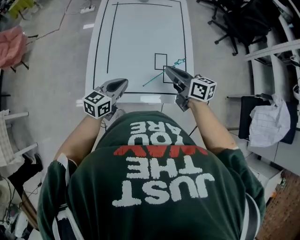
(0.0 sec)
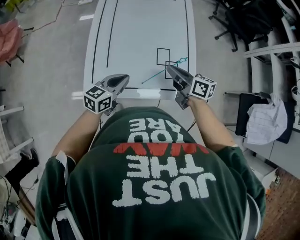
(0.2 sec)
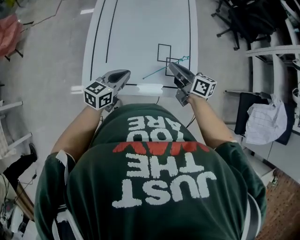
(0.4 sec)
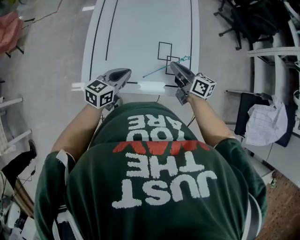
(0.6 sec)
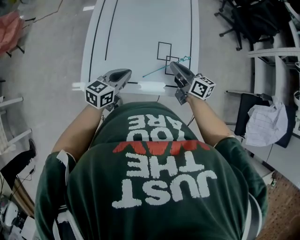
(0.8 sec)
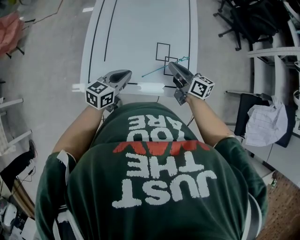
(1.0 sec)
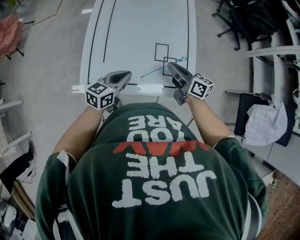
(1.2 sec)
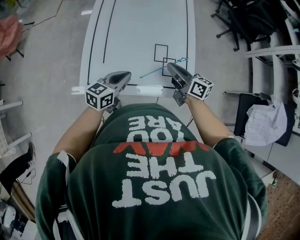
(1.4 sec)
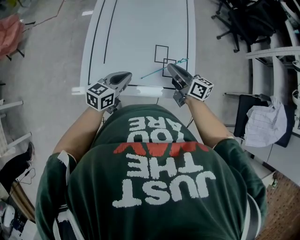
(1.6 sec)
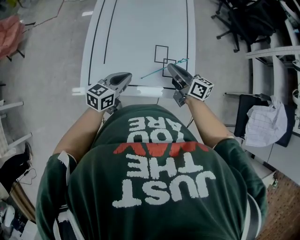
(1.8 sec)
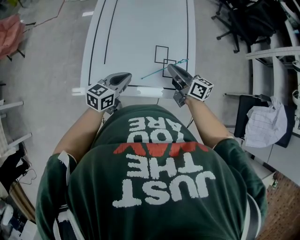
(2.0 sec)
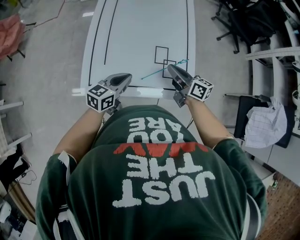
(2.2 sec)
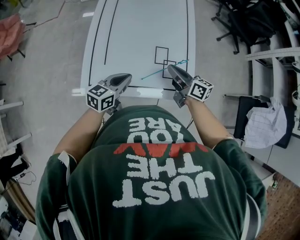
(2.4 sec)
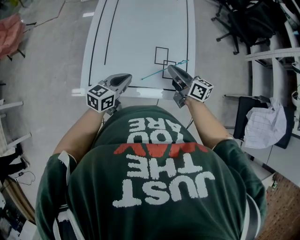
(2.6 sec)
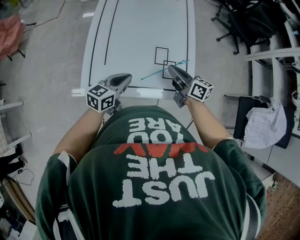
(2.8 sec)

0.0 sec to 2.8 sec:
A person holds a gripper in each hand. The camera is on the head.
0.0 sec to 1.4 sec: The right gripper goes approximately 5 cm downward.
1.4 sec to 2.8 sec: Neither gripper changes place.

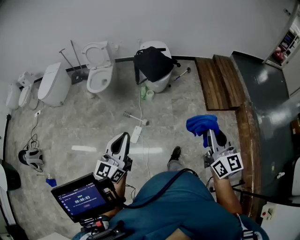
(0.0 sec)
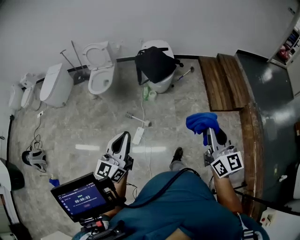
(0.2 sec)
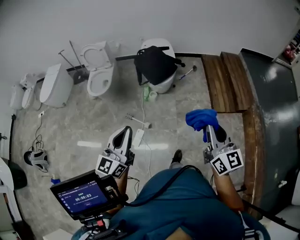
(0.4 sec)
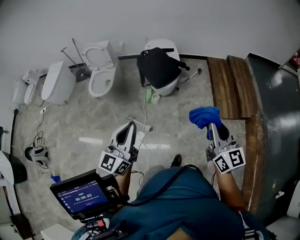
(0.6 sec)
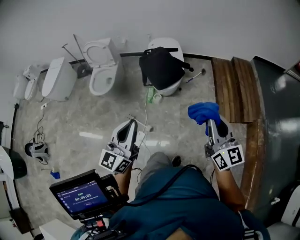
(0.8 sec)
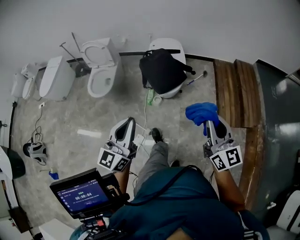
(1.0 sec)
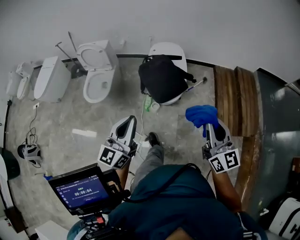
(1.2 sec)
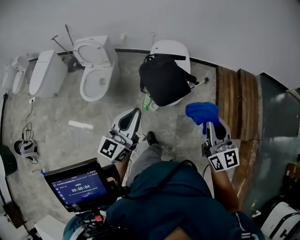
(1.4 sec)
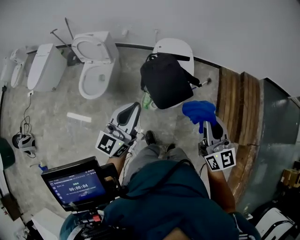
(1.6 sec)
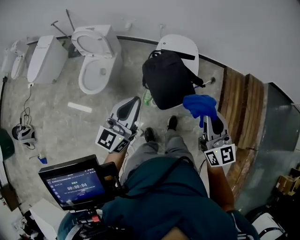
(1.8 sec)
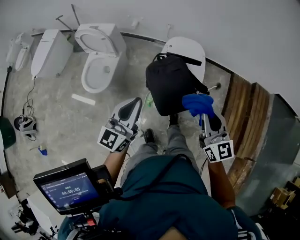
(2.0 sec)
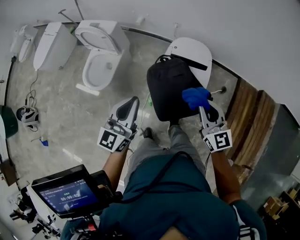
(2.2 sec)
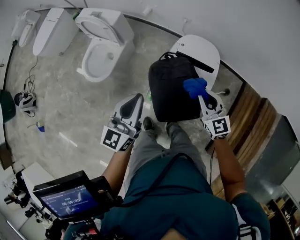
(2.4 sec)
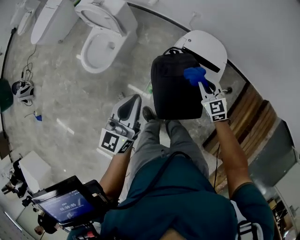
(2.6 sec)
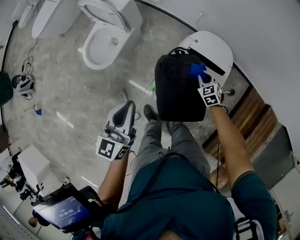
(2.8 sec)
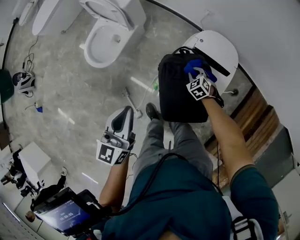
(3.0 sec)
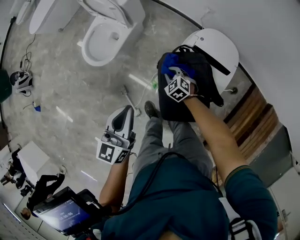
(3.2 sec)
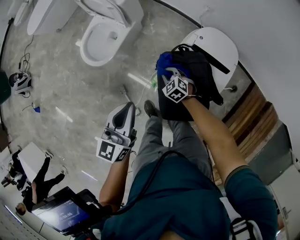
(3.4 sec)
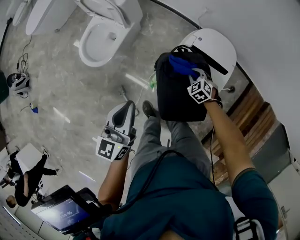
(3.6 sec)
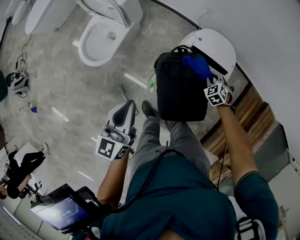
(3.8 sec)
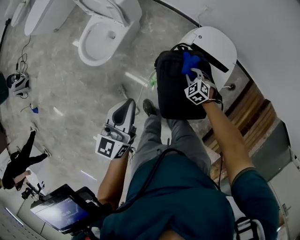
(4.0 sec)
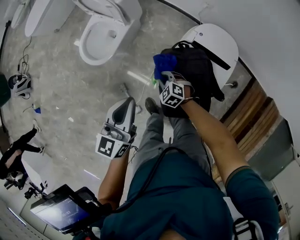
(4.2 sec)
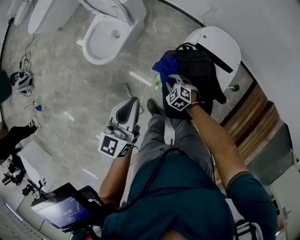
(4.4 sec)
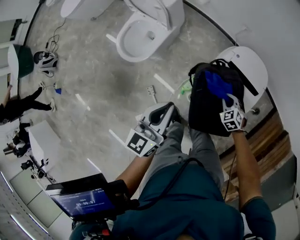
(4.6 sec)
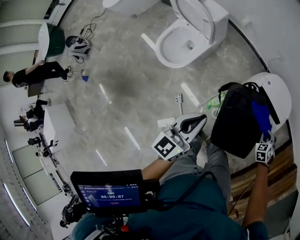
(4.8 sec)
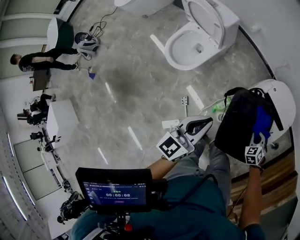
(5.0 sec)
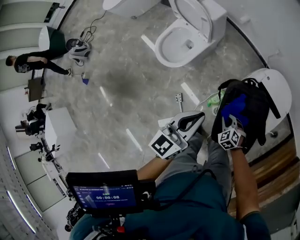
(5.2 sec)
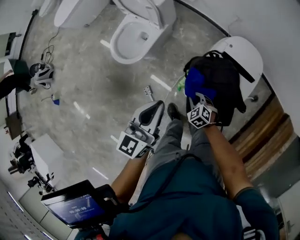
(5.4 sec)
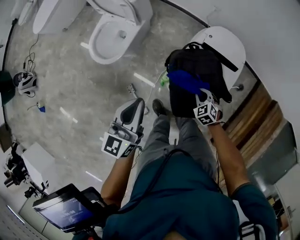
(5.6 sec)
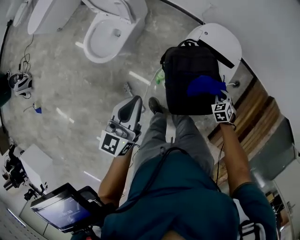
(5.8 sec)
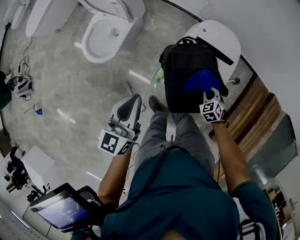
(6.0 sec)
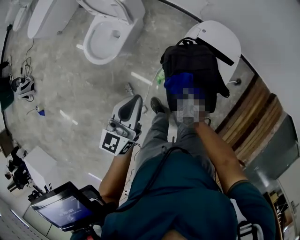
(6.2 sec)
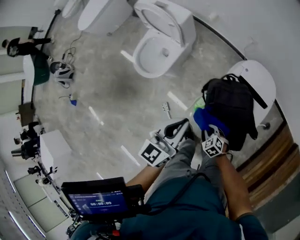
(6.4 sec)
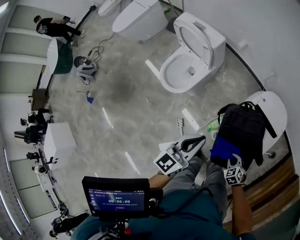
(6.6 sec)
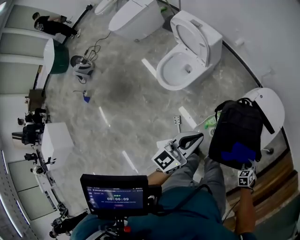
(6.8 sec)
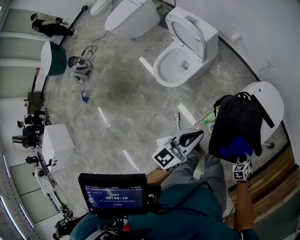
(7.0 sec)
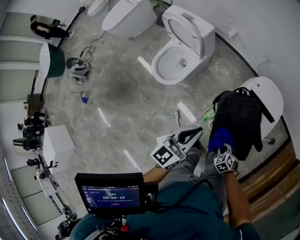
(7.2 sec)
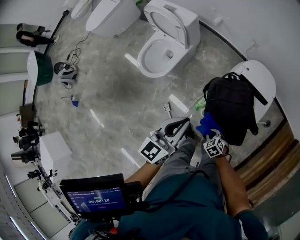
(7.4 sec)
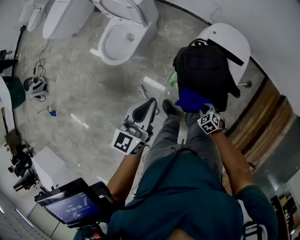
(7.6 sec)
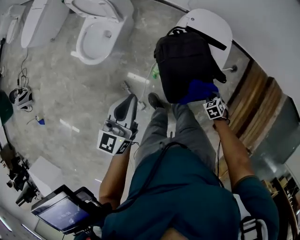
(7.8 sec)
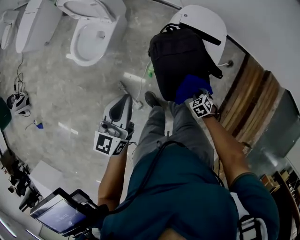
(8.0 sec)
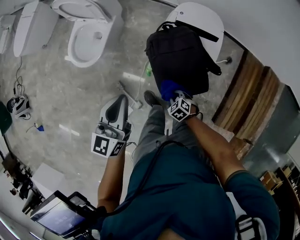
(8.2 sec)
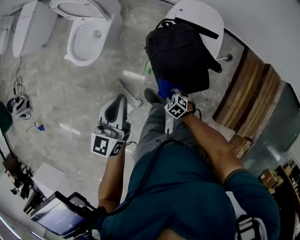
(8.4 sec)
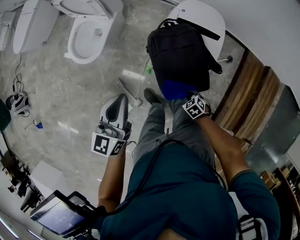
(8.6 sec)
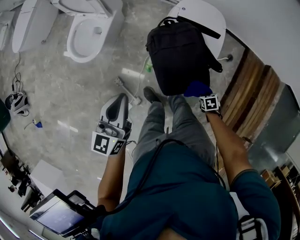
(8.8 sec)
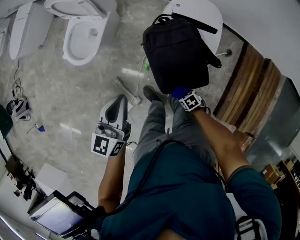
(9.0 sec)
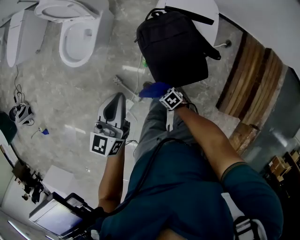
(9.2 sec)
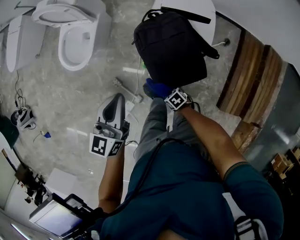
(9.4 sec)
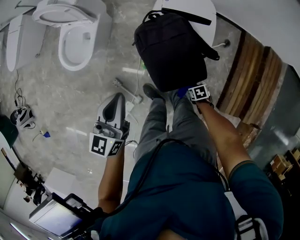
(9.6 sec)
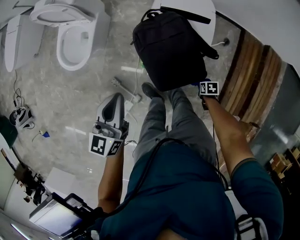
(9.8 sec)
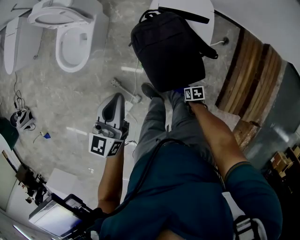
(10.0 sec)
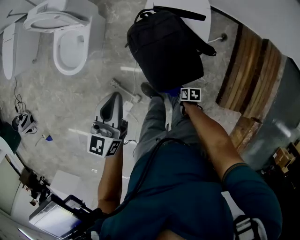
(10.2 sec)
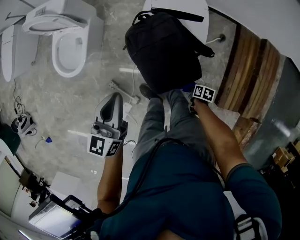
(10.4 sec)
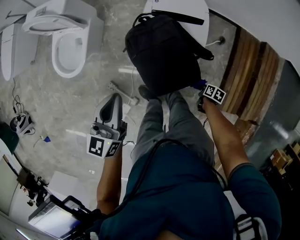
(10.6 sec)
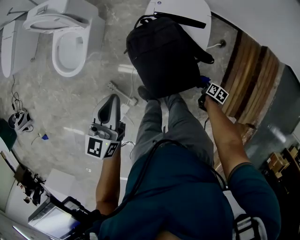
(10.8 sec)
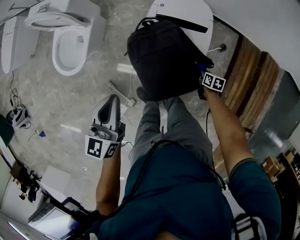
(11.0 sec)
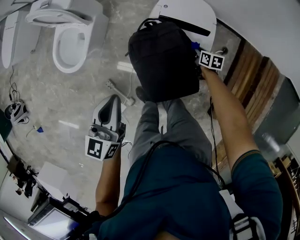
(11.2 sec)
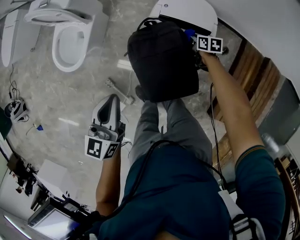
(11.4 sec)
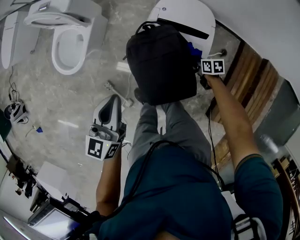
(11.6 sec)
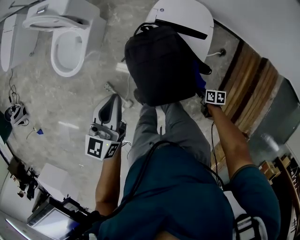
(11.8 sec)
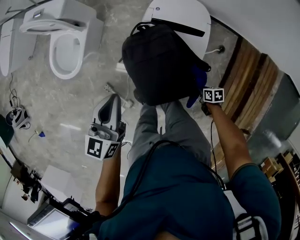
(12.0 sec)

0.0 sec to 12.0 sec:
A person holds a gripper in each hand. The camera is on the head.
0.0 sec to 1.6 sec: Both grippers are carried forward, some 60 cm.
1.6 sec to 3.0 sec: The left gripper shifts by some 25 cm, and swivels roughly 40 degrees; the right gripper moves downward, some 50 cm, and tilts its fingers about 60 degrees downward.
3.0 sec to 4.4 sec: The right gripper moves left and right over approximately 25 cm, changing direction 2 times.
4.4 sec to 6.0 sec: The right gripper changes place by some 20 cm, and swivels some 30 degrees.
6.0 sec to 7.6 sec: The right gripper ends up some 15 cm from where it was.
7.6 sec to 9.0 sec: The right gripper changes place by about 10 cm, and rotates about 30 degrees.
9.0 sec to 10.4 sec: The right gripper shifts by some 15 cm, and rolls clockwise, seen from behind, by about 60 degrees; the left gripper moves roughly 5 cm.
10.4 sec to 12.0 sec: The left gripper ends up approximately 5 cm from where it was. The right gripper changes its angle by some 30 degrees.

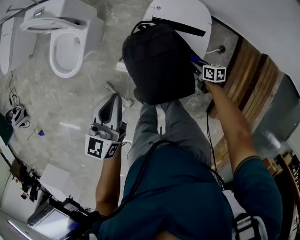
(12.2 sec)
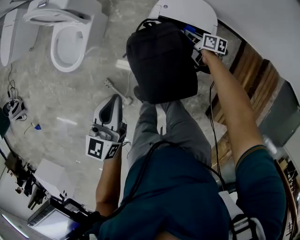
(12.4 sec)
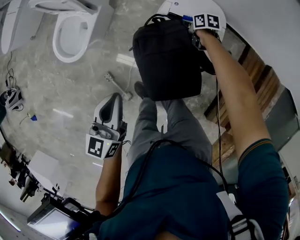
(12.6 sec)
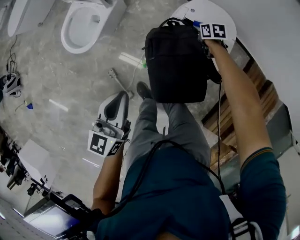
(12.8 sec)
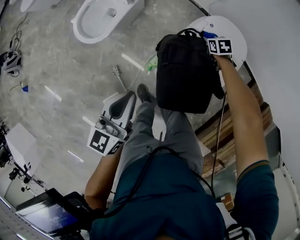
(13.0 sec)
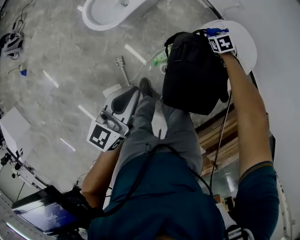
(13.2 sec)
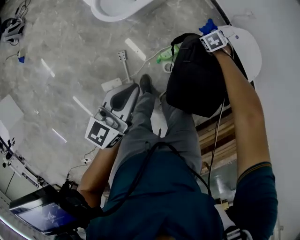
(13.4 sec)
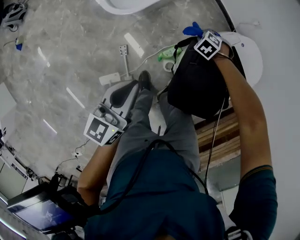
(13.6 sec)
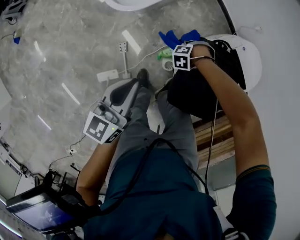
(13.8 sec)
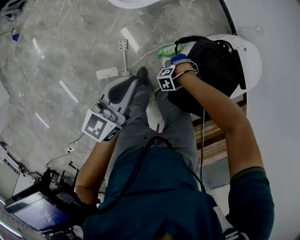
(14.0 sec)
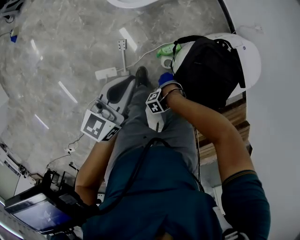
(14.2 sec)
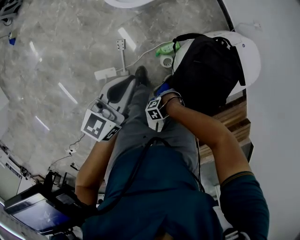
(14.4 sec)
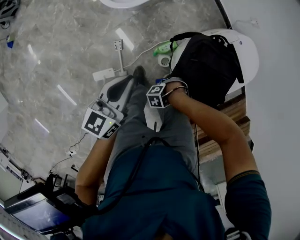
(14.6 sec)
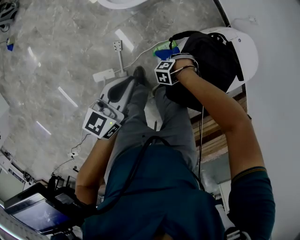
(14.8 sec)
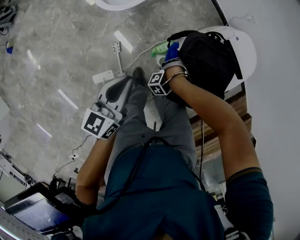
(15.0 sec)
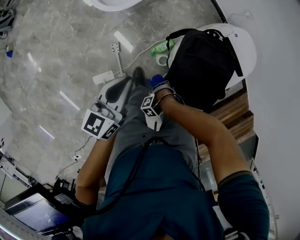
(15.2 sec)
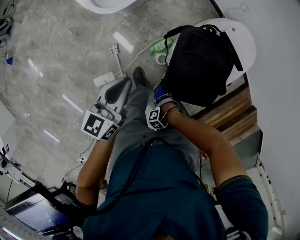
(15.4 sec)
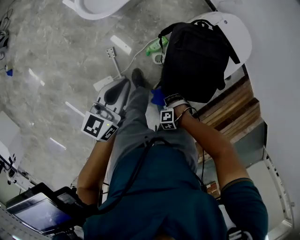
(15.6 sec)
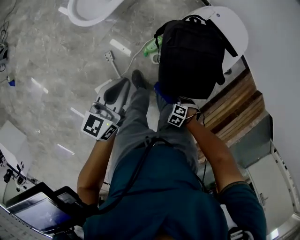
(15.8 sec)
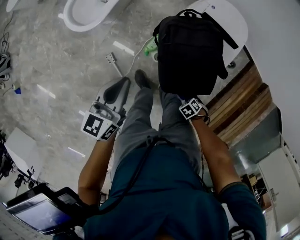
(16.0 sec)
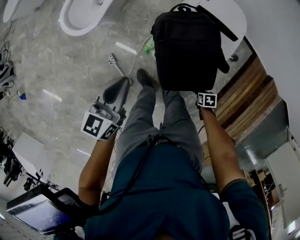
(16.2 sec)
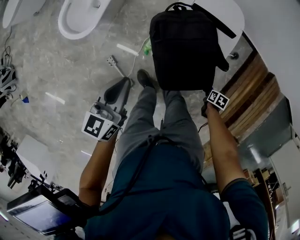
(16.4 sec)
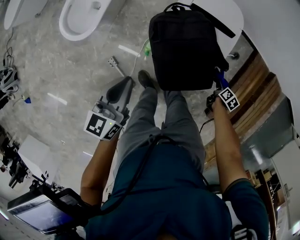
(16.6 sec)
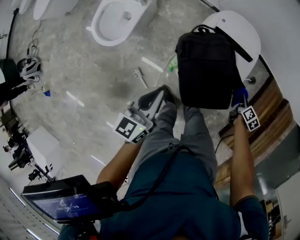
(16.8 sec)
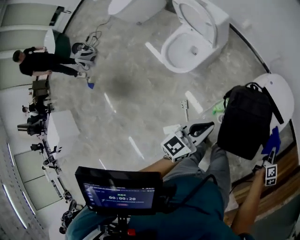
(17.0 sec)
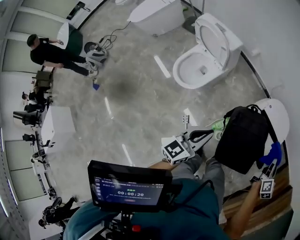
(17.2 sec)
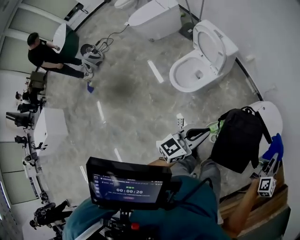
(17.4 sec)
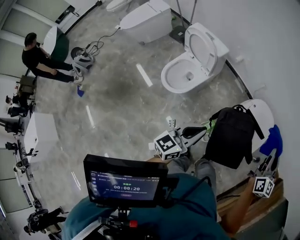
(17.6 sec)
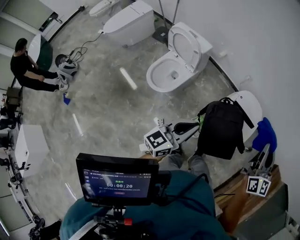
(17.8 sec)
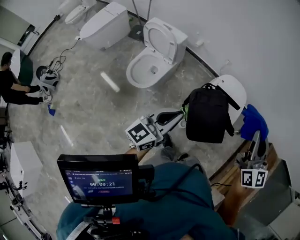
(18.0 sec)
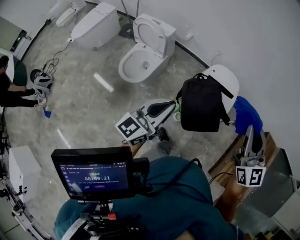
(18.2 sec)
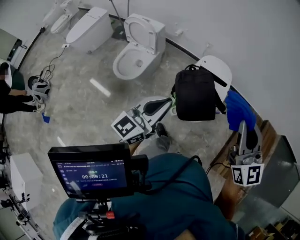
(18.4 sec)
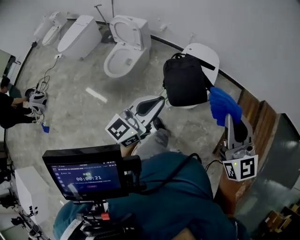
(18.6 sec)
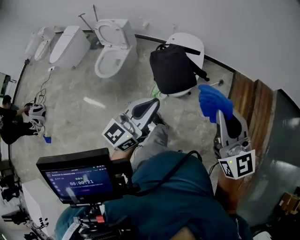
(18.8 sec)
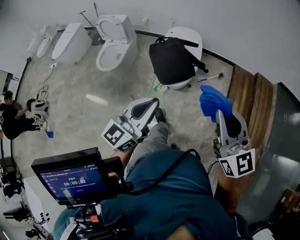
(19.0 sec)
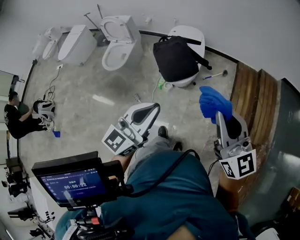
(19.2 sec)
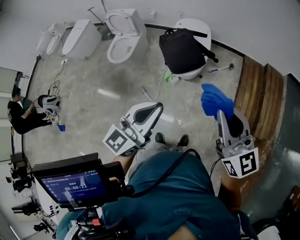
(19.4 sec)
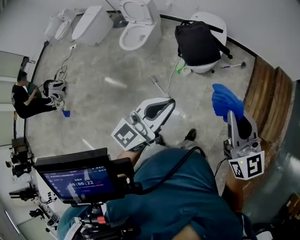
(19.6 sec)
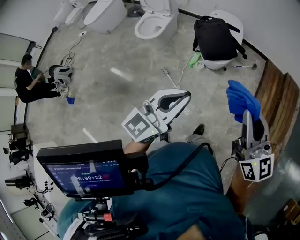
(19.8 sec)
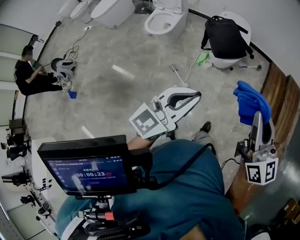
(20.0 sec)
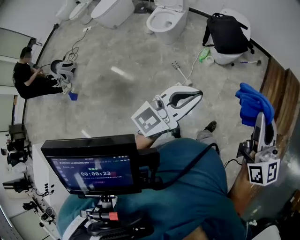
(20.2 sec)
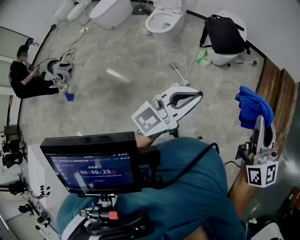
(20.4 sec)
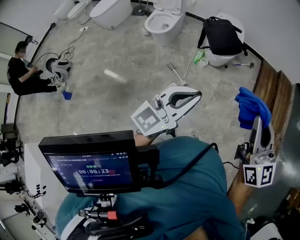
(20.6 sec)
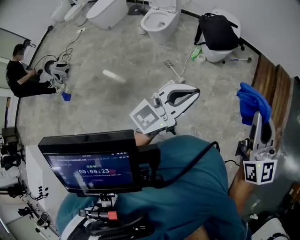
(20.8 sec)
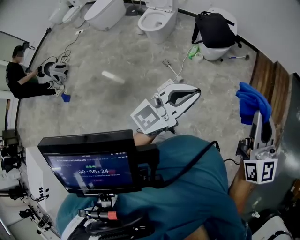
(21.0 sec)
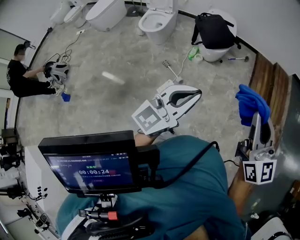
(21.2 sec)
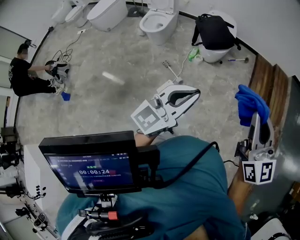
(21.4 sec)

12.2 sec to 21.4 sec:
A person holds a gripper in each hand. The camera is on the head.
12.2 sec to 13.8 sec: The left gripper moves roughly 25 cm, and changes its angle by roughly 30 degrees. Meanwhile the right gripper shifts by roughly 35 cm, and rolls counterclockwise, seen from behind, by approximately 120 degrees.
13.8 sec to 15.2 sec: The right gripper shifts by some 30 cm, and swivels some 30 degrees.
15.2 sec to 16.8 sec: The right gripper ends up some 40 cm from where it was, and rolls counterclockwise, seen from behind, by roughly 150 degrees. The left gripper ends up some 15 cm from where it was, and changes its angle by about 20 degrees.
16.8 sec to 18.4 sec: The right gripper shifts some 60 cm upward, and tips its fingers upward by approximately 50 degrees. Meanwhile the left gripper heads upward and backward, covering approximately 30 cm, and changes its angle by about 30 degrees.
18.4 sec to 19.8 sec: The pair of grippers is taken backward, about 40 cm.
19.8 sec to 21.4 sec: The two grippers go roughly 25 cm backward.
